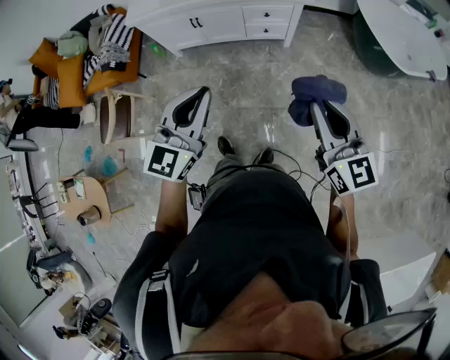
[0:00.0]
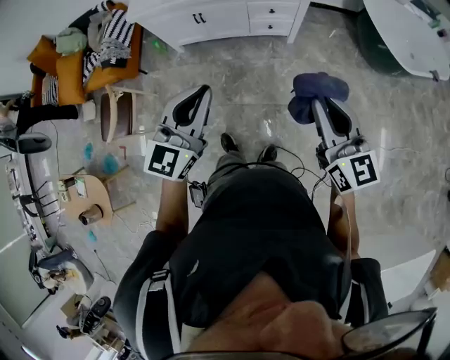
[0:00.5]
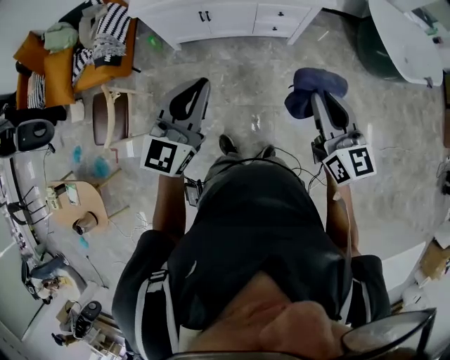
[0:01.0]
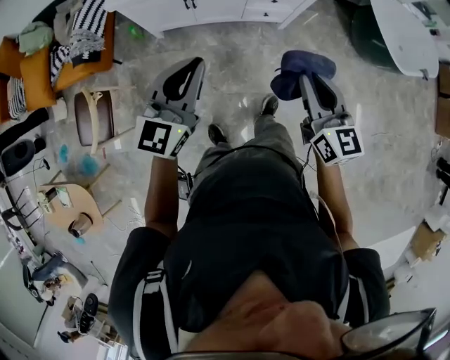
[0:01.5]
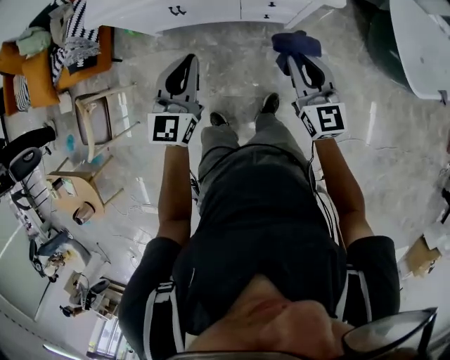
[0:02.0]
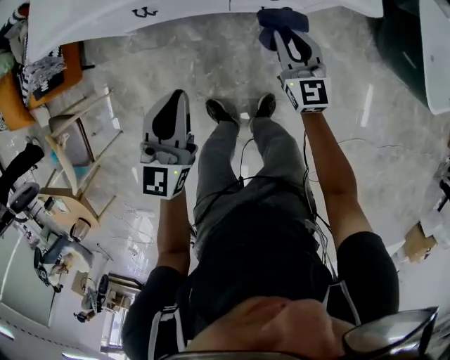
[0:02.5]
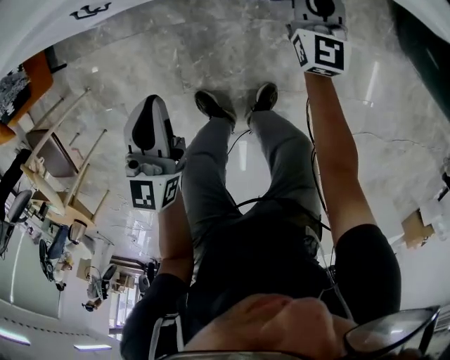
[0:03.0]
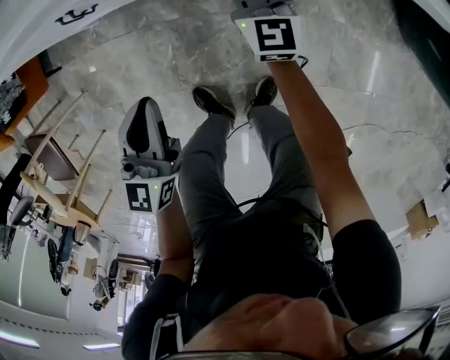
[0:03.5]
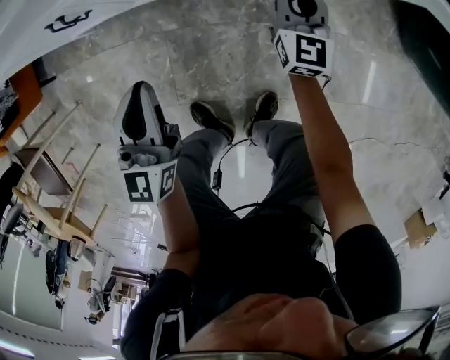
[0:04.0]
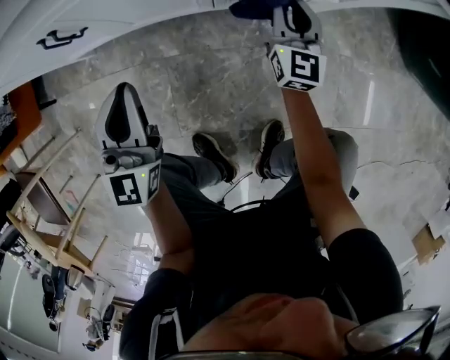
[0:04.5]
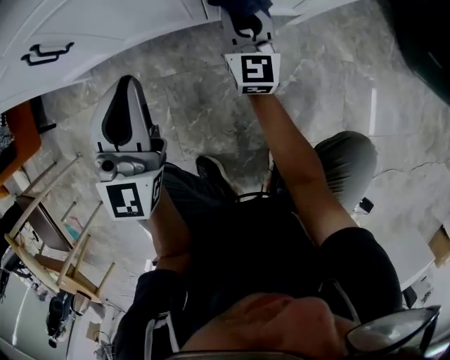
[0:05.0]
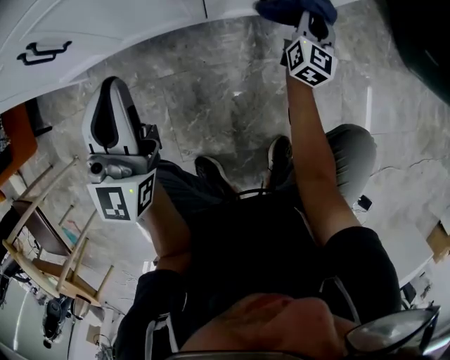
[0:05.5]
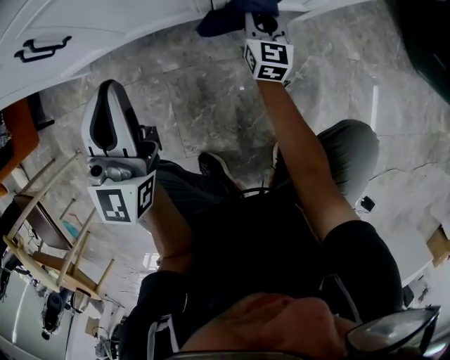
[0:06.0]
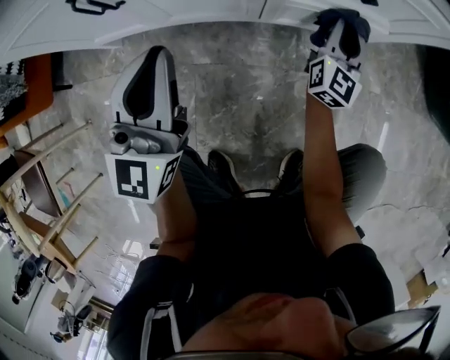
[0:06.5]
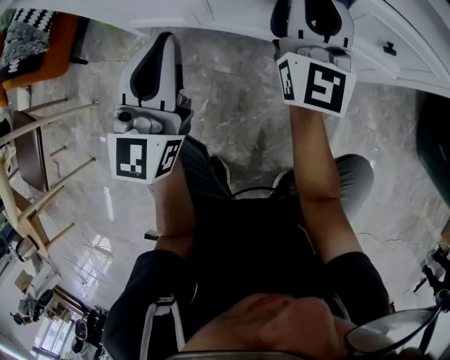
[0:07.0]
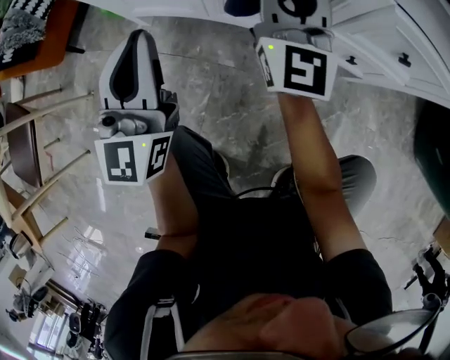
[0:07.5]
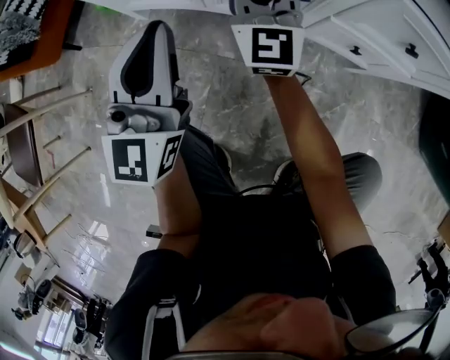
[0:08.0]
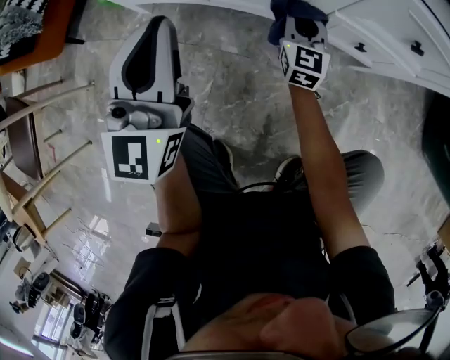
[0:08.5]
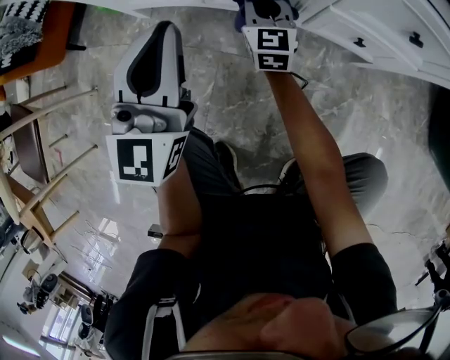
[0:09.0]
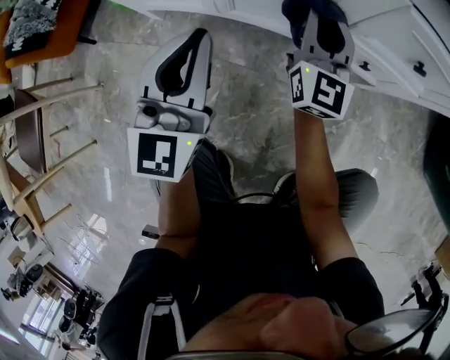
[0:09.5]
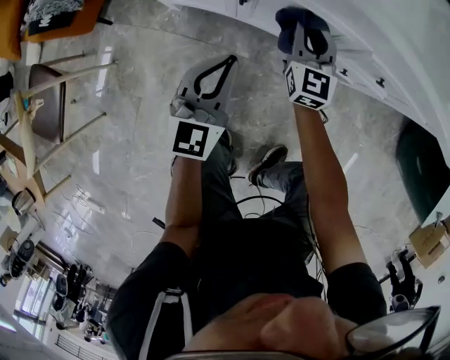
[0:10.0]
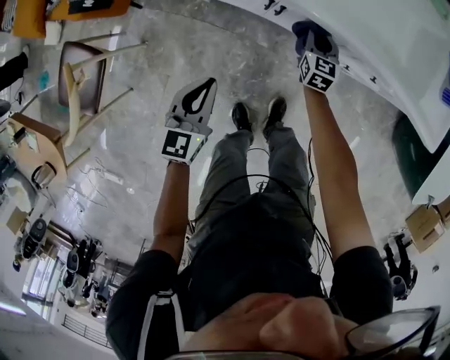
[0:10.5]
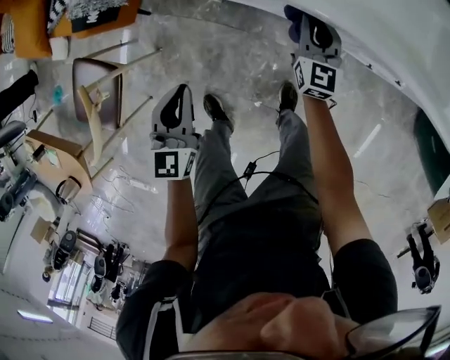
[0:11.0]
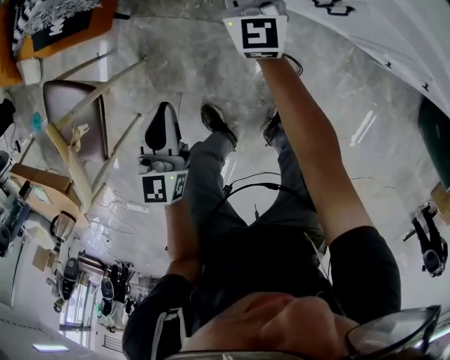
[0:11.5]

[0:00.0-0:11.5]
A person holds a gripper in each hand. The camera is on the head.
0:00.0 to 0:02.0: Both grippers travel together forward and downward, approximately 40 cm.
0:02.0 to 0:04.0: The left gripper is displaced downward by roughly 40 cm. Meanwhile the right gripper heads downward and forward, covering approximately 50 cm.
0:04.0 to 0:06.0: The right gripper moves downward, approximately 20 cm, while the left gripper goes roughly 5 cm downward.
0:06.0 to 0:07.5: The left gripper changes place by some 15 cm, and rotates approximately 20 degrees. Meanwhile the right gripper heads upward, covering some 30 cm, and rotates roughly 40 degrees.
0:07.5 to 0:09.5: The left gripper moves to the right, approximately 10 cm. Meanwhile the right gripper goes approximately 15 cm downward and to the right.
0:09.5 to 0:11.5: The two grippers go about 40 cm to the left. The right gripper turns by roughly 20 degrees, while the left gripper rotates some 30 degrees.

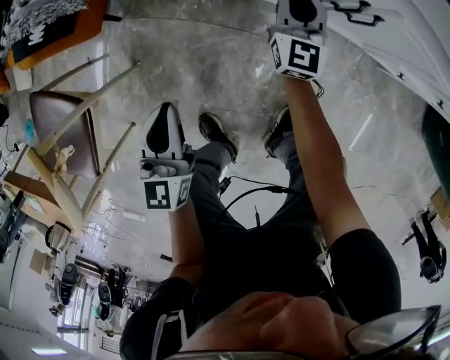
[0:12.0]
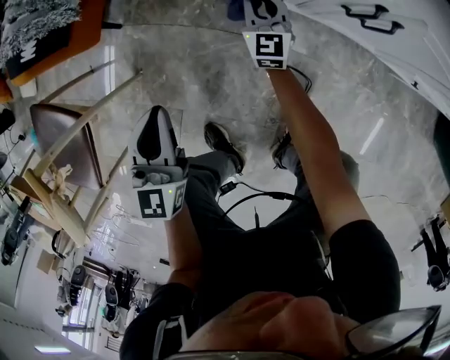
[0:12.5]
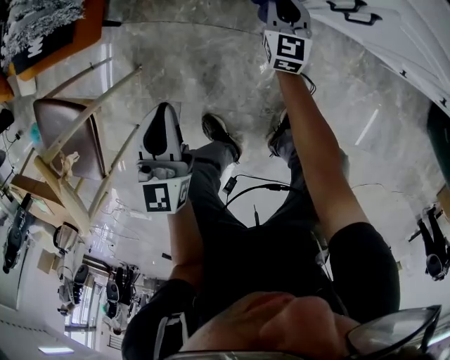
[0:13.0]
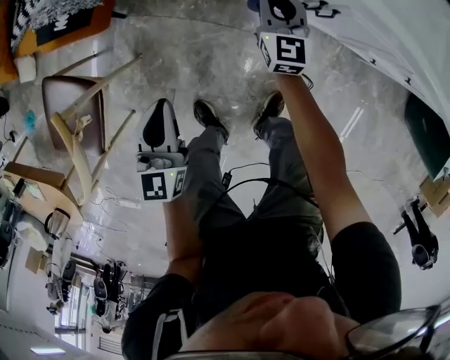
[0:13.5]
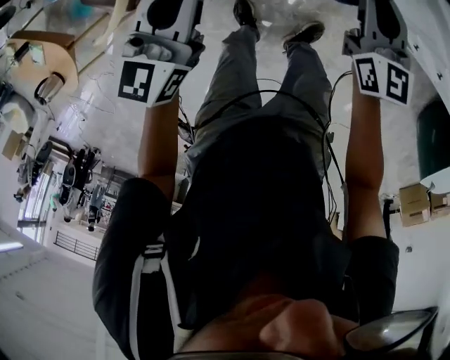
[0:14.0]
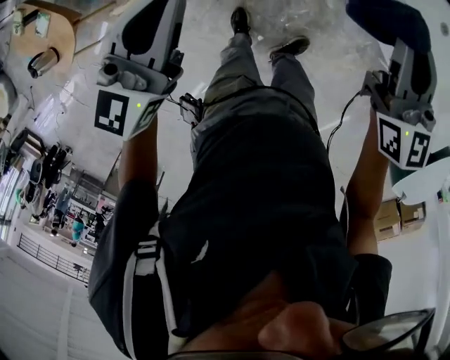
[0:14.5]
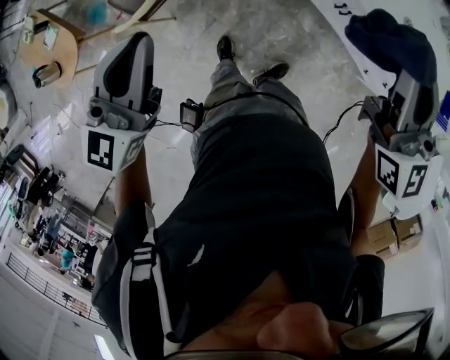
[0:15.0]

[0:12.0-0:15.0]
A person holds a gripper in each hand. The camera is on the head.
0:12.0 to 0:13.5: The two grippers go roughly 10 cm upward.
0:13.5 to 0:15.0: Both grippers move upward, some 60 cm. The right gripper changes its angle by approximately 40 degrees.

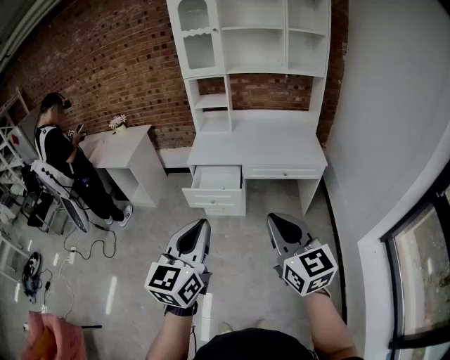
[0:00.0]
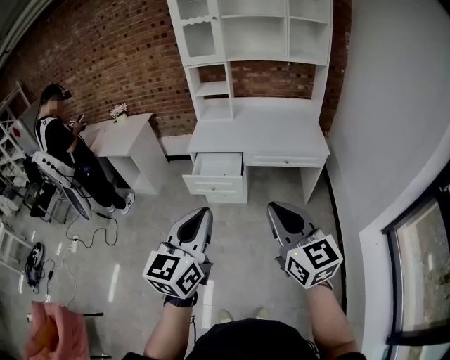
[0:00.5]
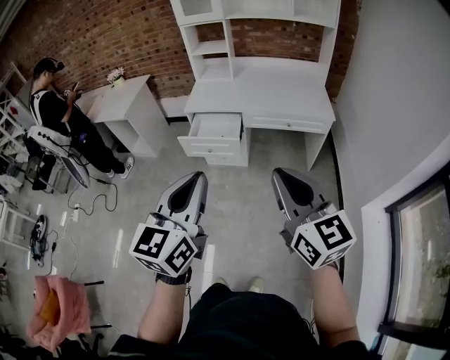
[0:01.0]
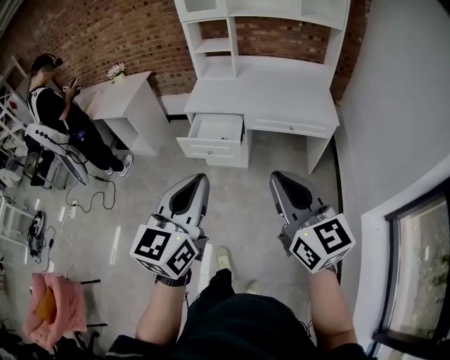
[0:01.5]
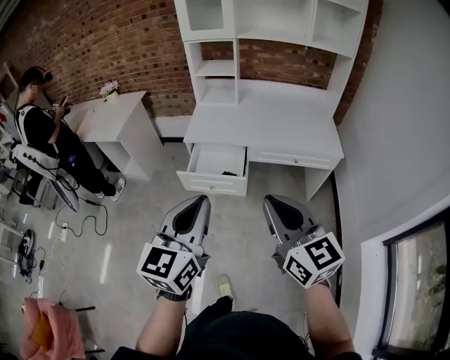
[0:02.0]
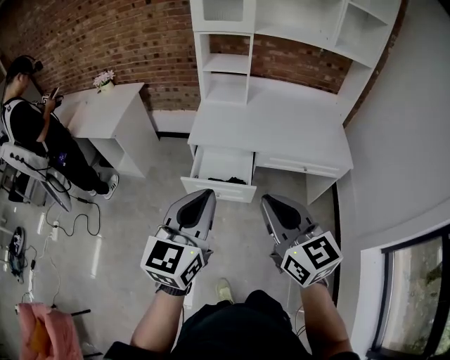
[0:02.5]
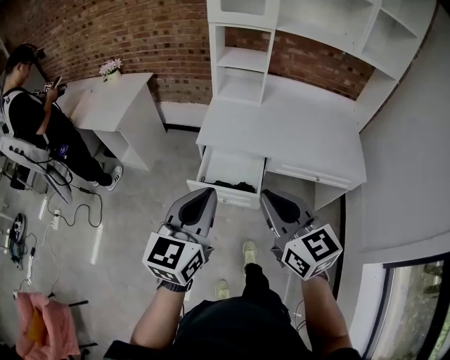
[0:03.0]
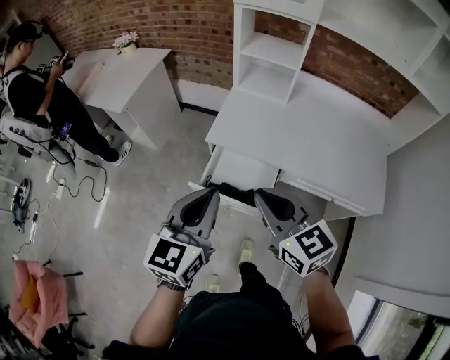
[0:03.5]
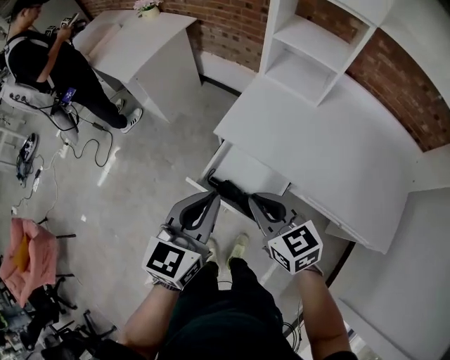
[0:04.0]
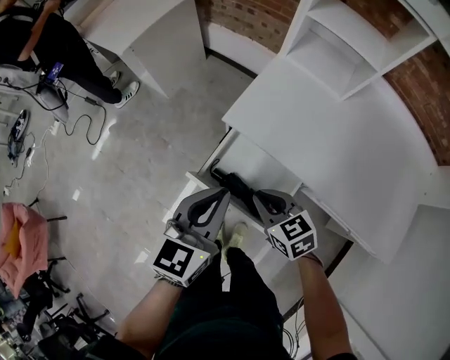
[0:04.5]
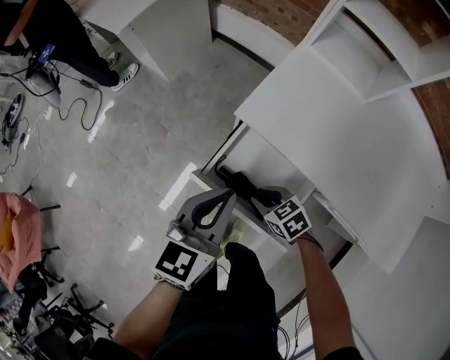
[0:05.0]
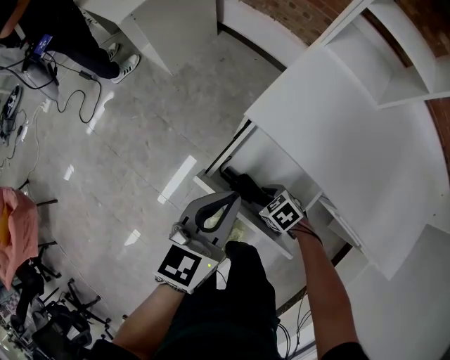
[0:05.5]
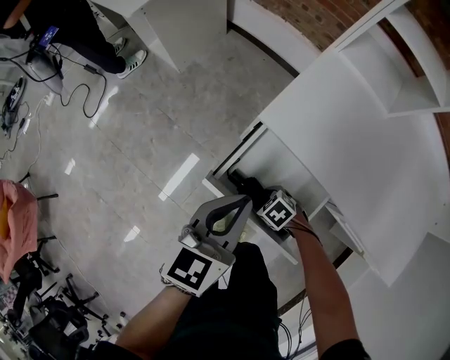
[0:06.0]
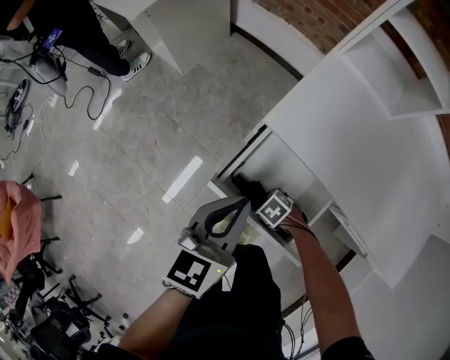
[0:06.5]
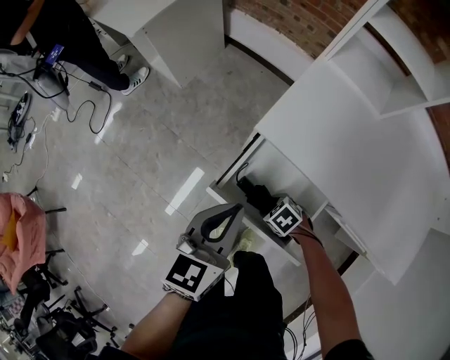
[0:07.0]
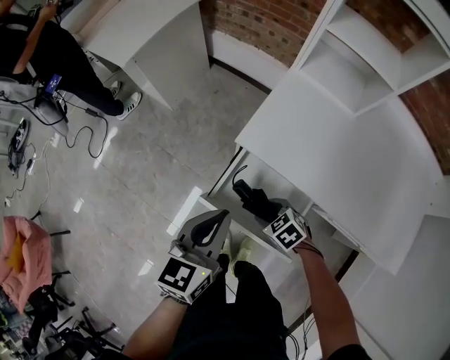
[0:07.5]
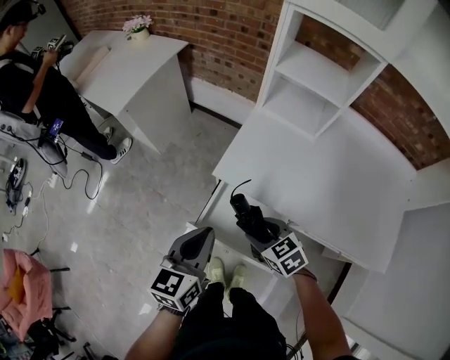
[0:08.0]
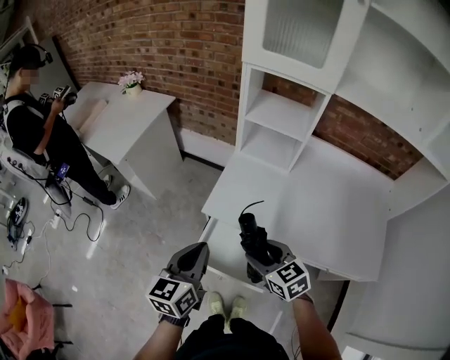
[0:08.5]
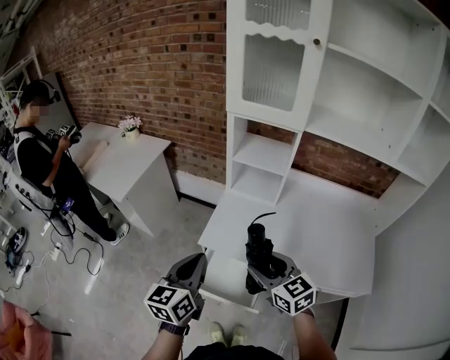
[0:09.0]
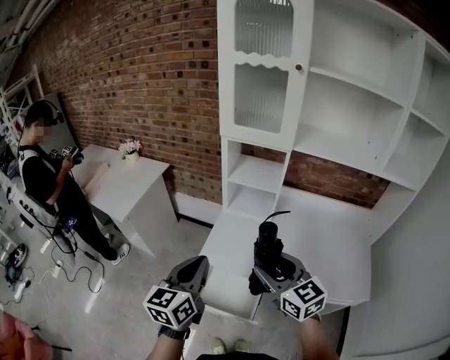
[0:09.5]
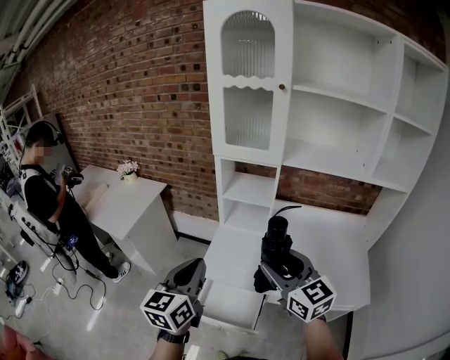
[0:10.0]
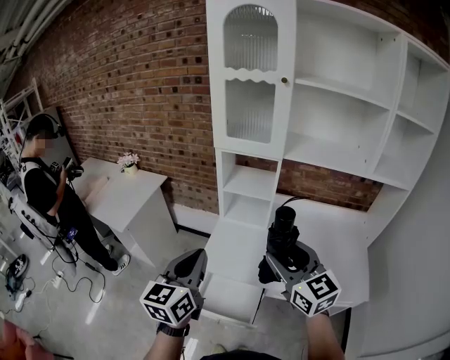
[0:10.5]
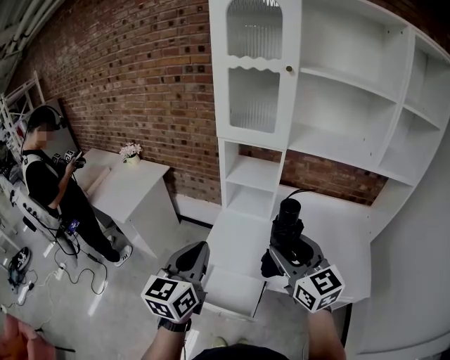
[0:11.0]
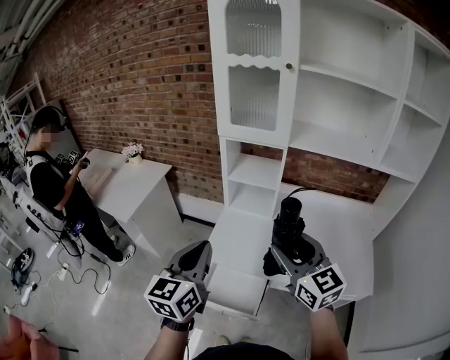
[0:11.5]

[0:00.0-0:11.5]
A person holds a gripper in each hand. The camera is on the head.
0:00.0 to 0:02.0: The grippers both shift forward by some 15 cm.
0:02.0 to 0:04.0: The two grippers travel together, approximately 40 cm. The left gripper rotates about 20 degrees, while the right gripper swivels some 40 degrees.
0:04.0 to 0:06.0: The left gripper heads downward, covering roughly 20 cm. Meanwhile the right gripper shifts approximately 40 cm downward, angles its fingers downward, by approximately 40 degrees, and opens.
0:06.0 to 0:07.5: The right gripper is displaced upward by some 15 cm; the left gripper is displaced upward by some 5 cm.
0:07.5 to 0:09.5: The right gripper shifts about 50 cm upward, and tilts its fingers about 50 degrees upward, while the left gripper moves upward, roughly 30 cm.
0:09.5 to 0:11.5: Both grippers travel together upward, approximately 5 cm.
